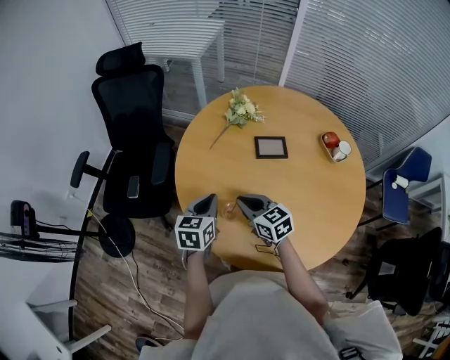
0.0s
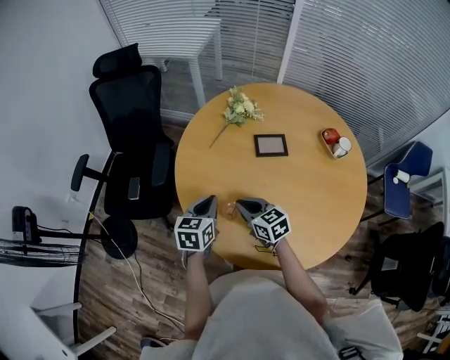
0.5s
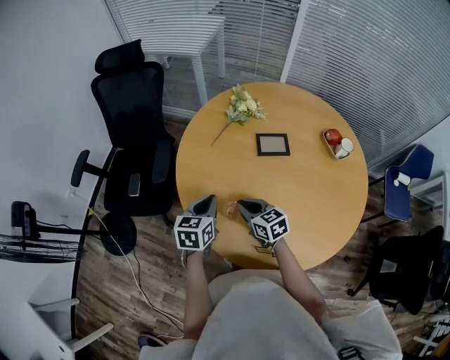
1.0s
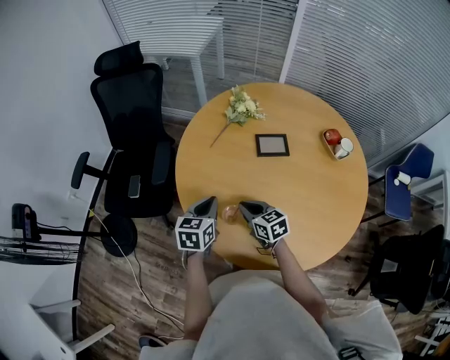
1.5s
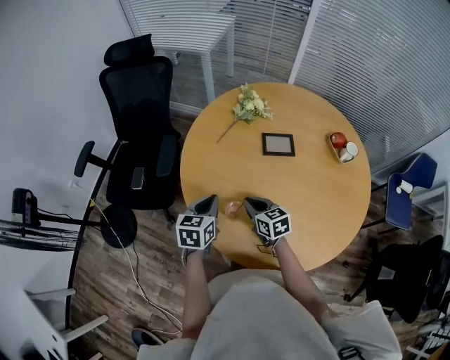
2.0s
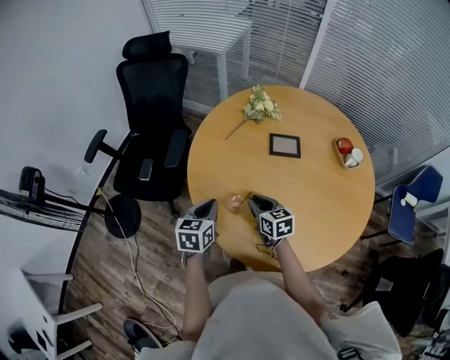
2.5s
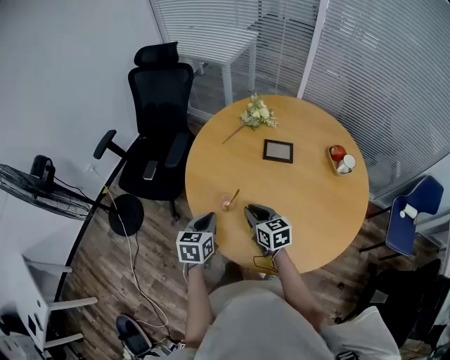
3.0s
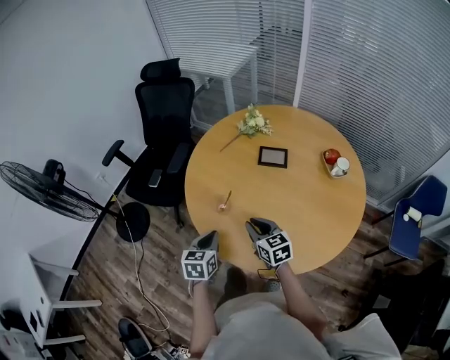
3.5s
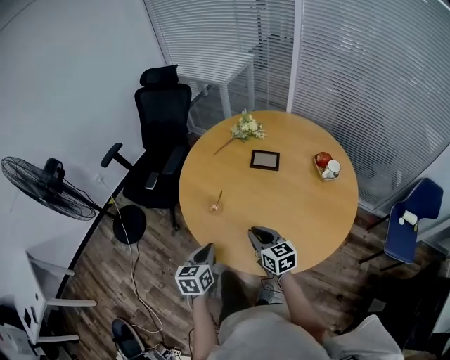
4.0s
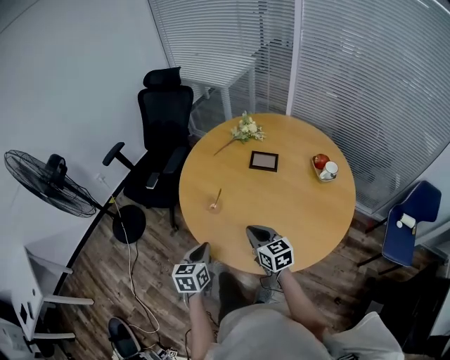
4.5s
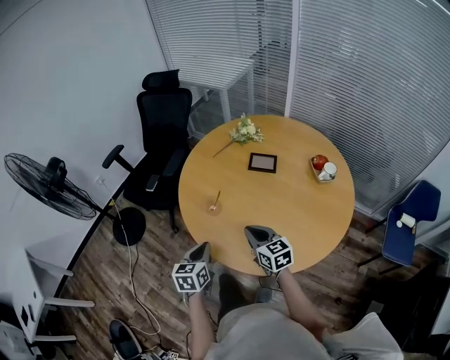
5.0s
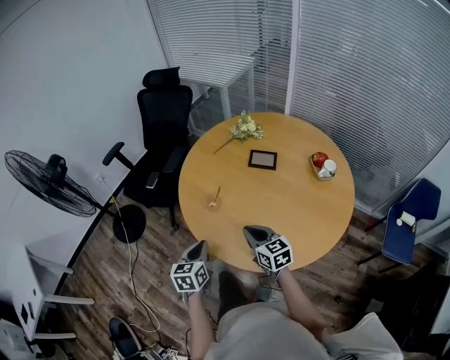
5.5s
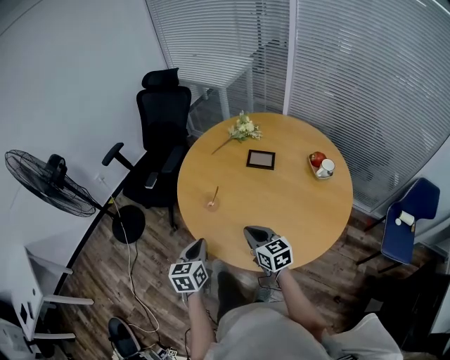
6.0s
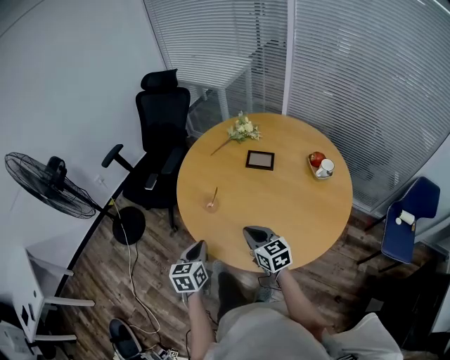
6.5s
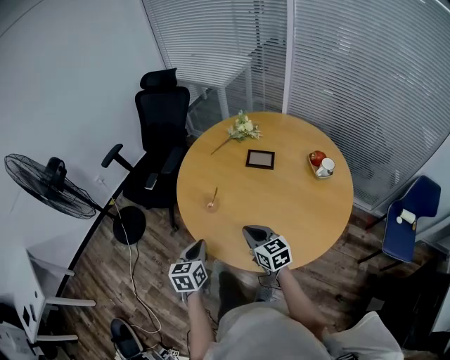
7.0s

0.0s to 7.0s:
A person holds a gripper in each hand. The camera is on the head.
0.0s to 2.0s: The right gripper moves downward, some 5 cm.
2.0s to 3.5s: The left gripper moves backward, roughly 20 cm. Meanwhile the right gripper is displaced backward, upward and to the right by some 20 cm.
3.5s to 5.0s: Both grippers move backward, about 5 cm.
5.0s to 7.0s: The grippers stay close to where they were, moving slightly.

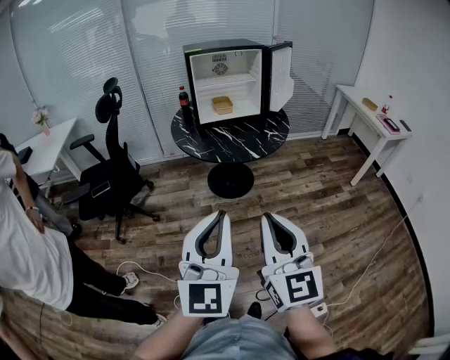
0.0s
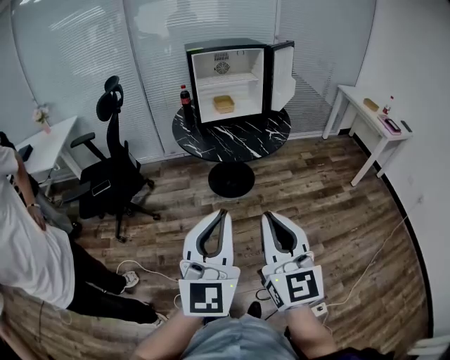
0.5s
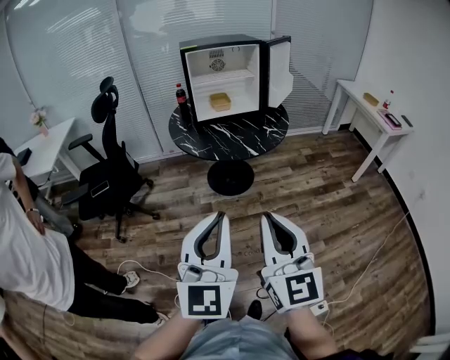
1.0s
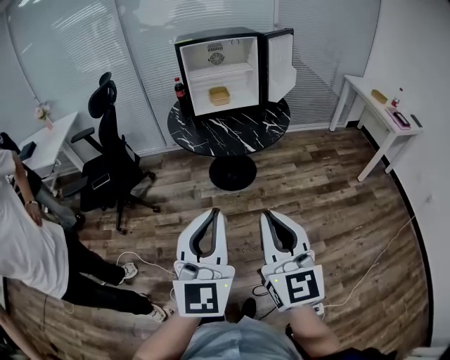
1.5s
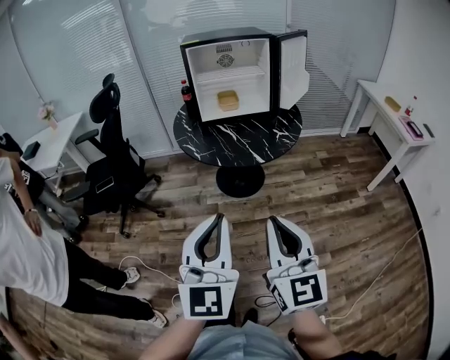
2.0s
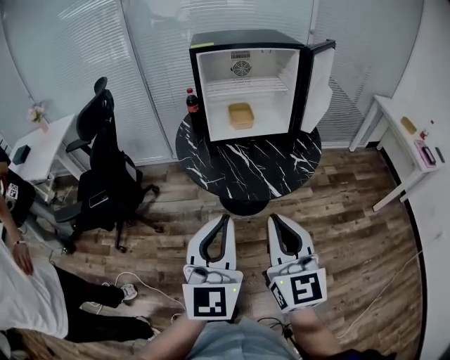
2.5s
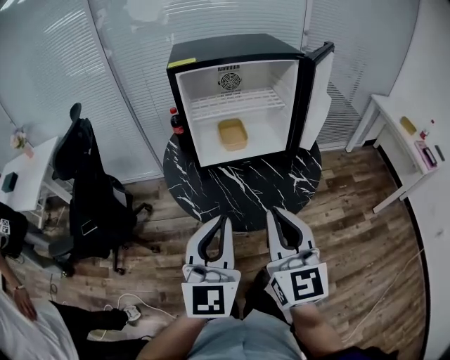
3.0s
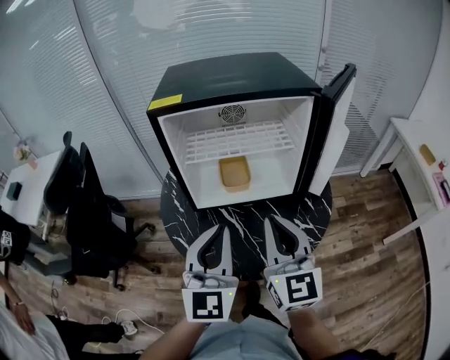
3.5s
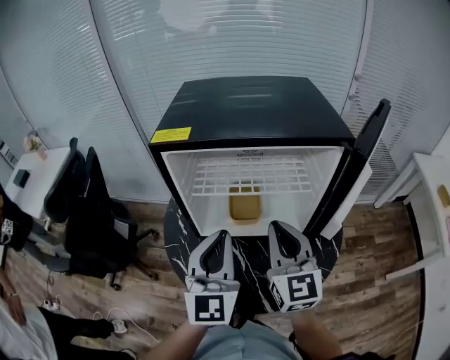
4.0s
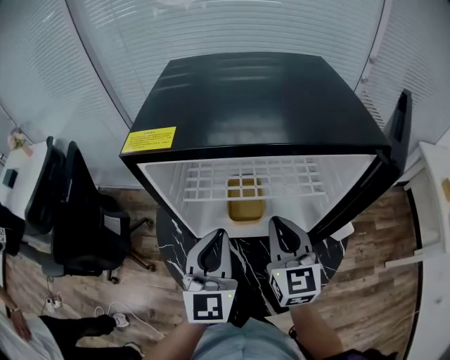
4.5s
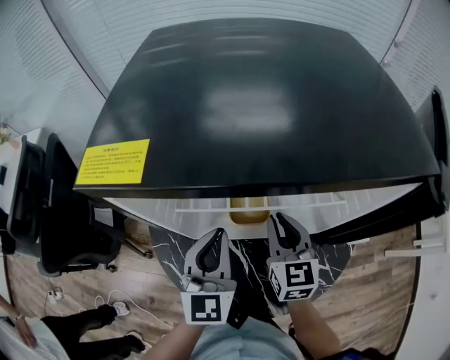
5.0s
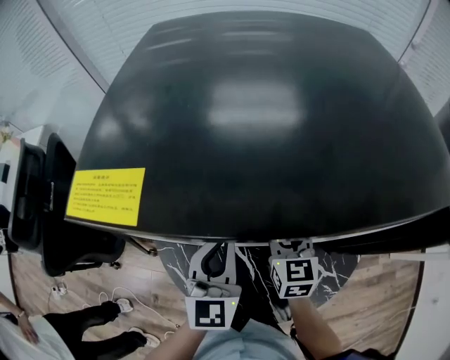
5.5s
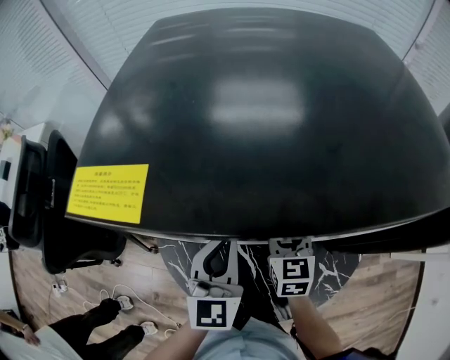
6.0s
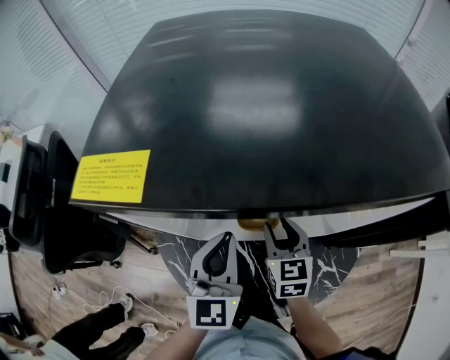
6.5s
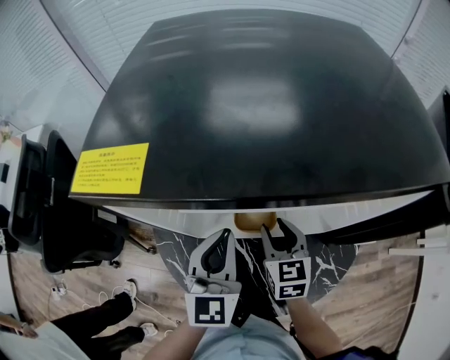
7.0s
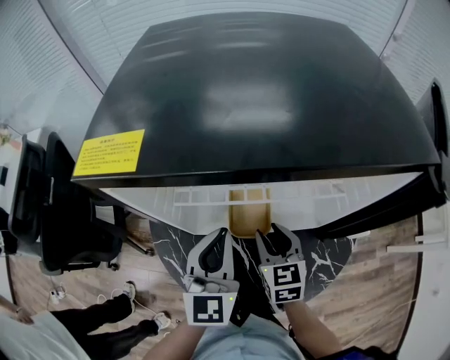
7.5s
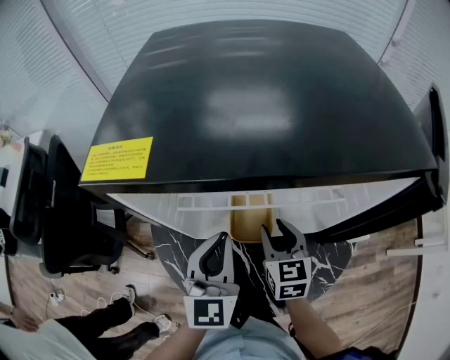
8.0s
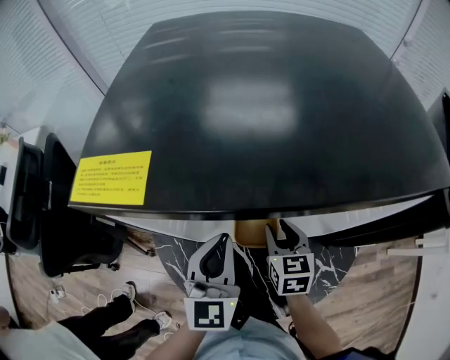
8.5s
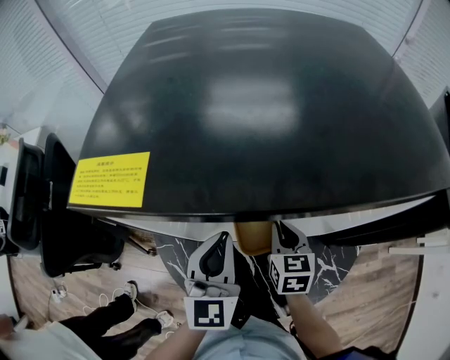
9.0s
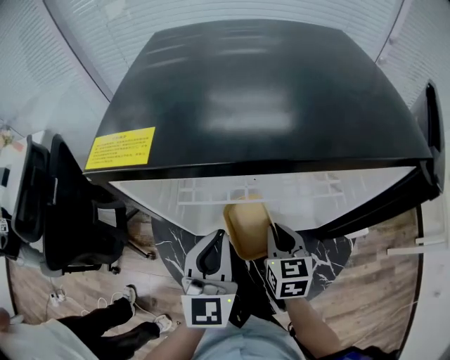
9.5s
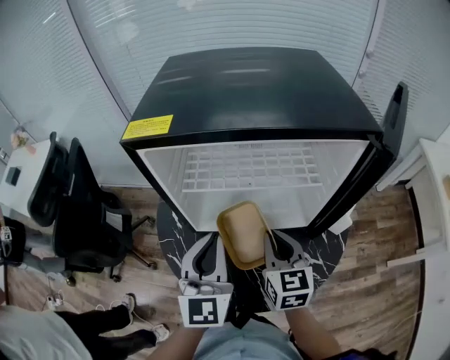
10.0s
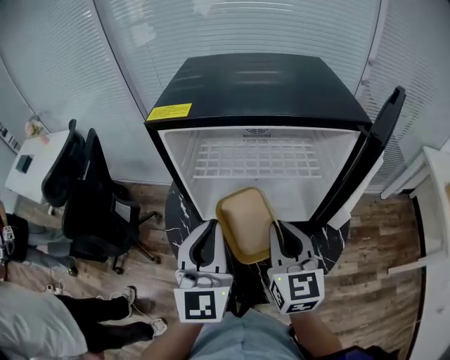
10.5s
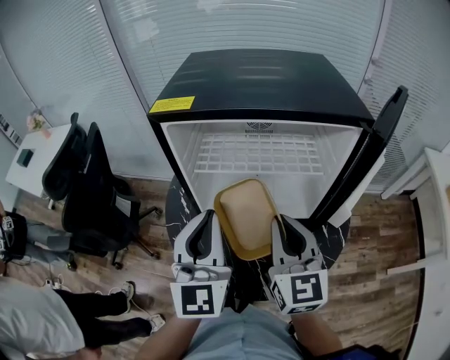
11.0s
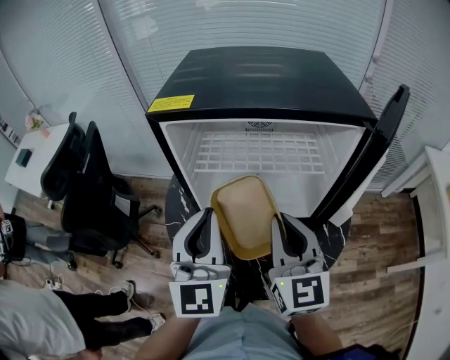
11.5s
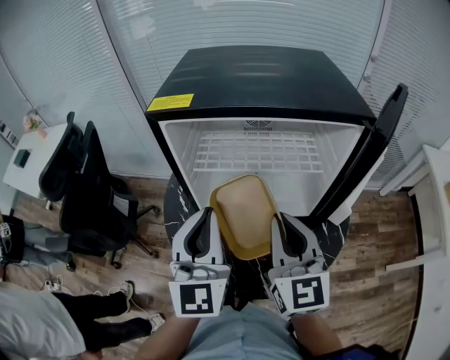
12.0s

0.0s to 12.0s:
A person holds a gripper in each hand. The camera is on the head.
0.0s to 2.0s: The two grippers go roughly 15 cm forward and to the right.
2.0s to 4.0s: The two grippers travel together, forward, roughly 60 cm.
4.0s to 6.0s: The grippers both shift downward and forward by approximately 25 cm. The right gripper changes its angle by approximately 30 degrees, and opens.
8.0s to 10.0s: The grippers both shift backward and upward by about 10 cm. The right gripper closes.
10.0s to 12.0s: The right gripper is displaced upward by approximately 10 cm, and changes its angle by about 20 degrees. Meanwhile the left gripper travels upward by about 5 cm.

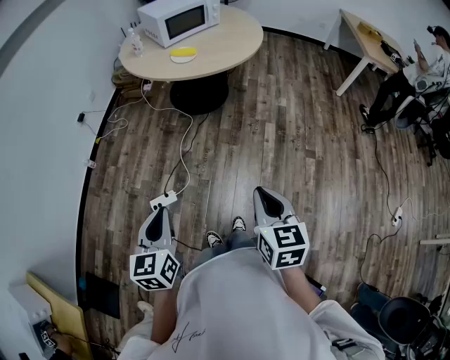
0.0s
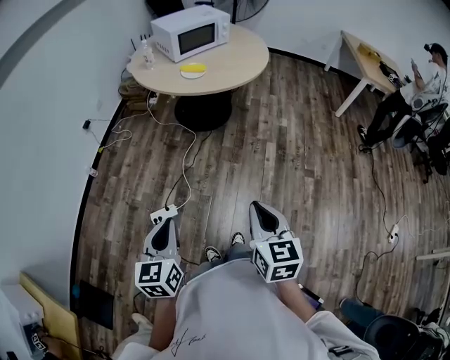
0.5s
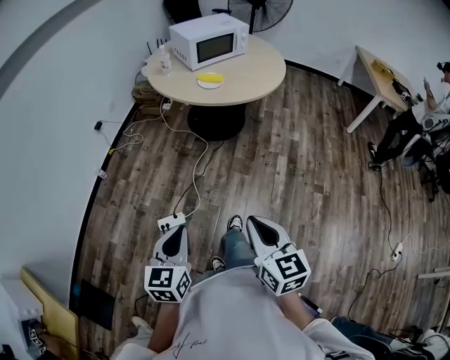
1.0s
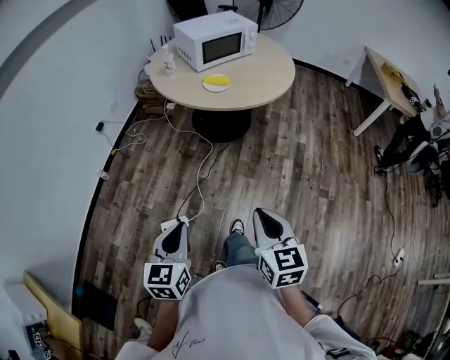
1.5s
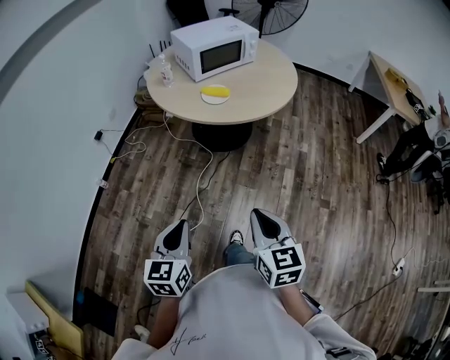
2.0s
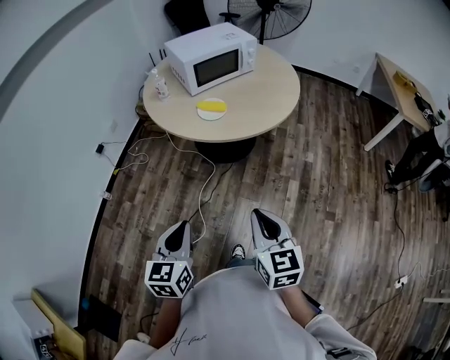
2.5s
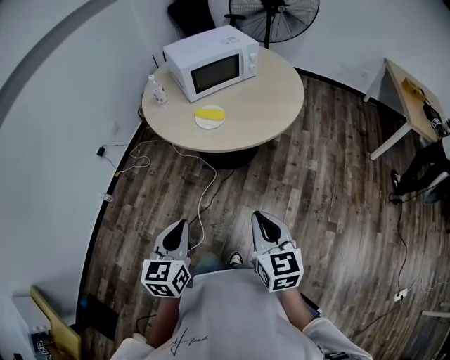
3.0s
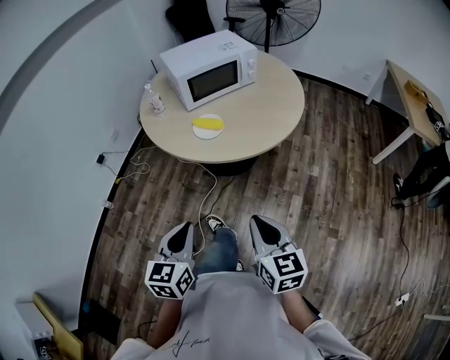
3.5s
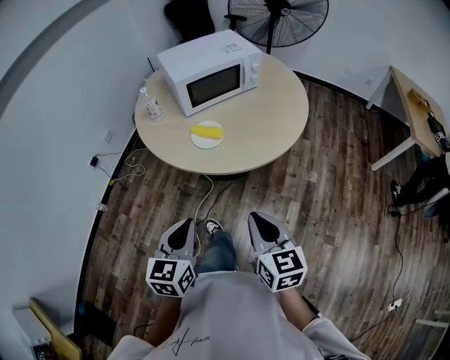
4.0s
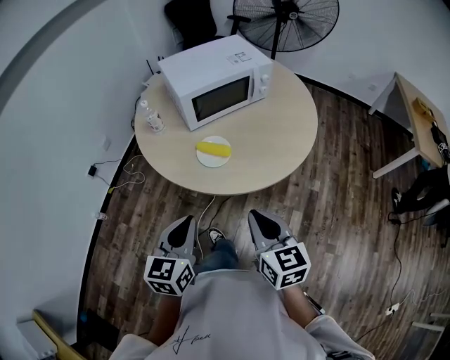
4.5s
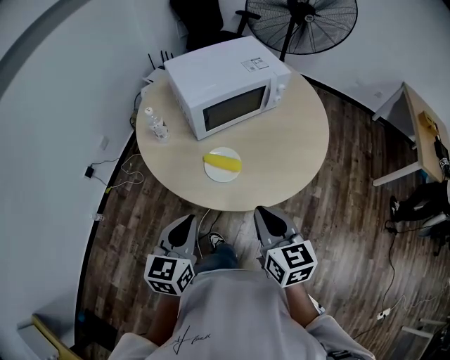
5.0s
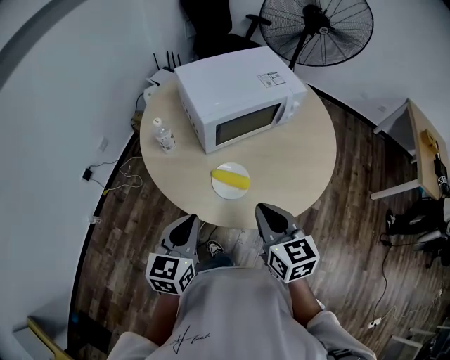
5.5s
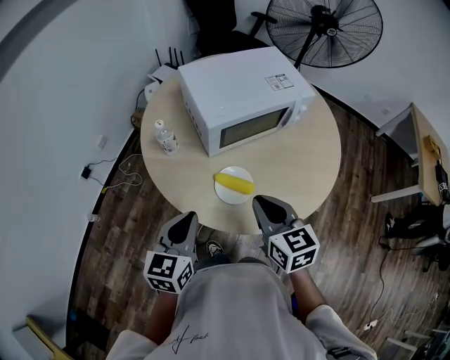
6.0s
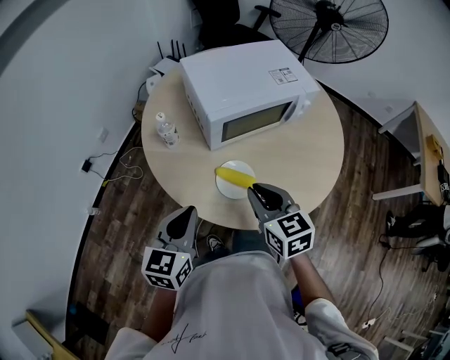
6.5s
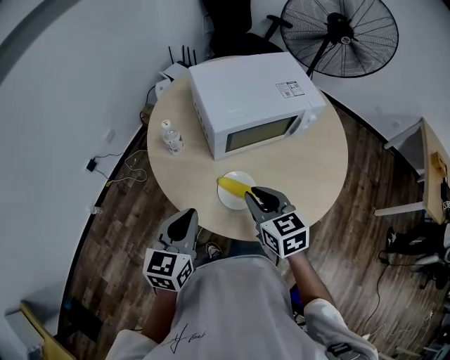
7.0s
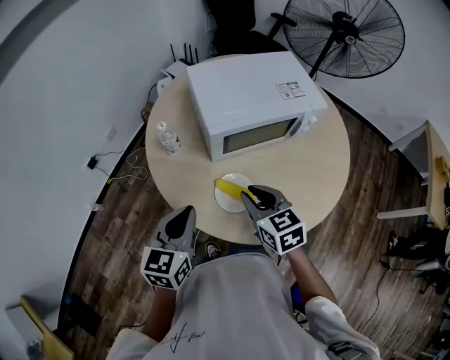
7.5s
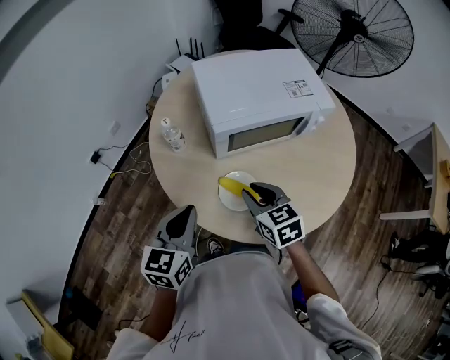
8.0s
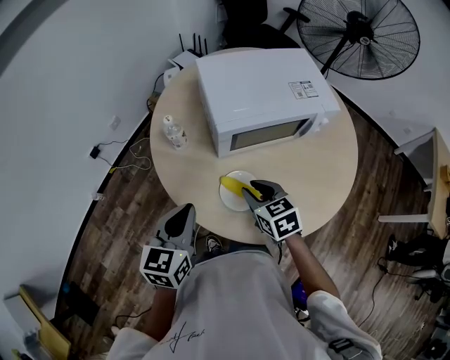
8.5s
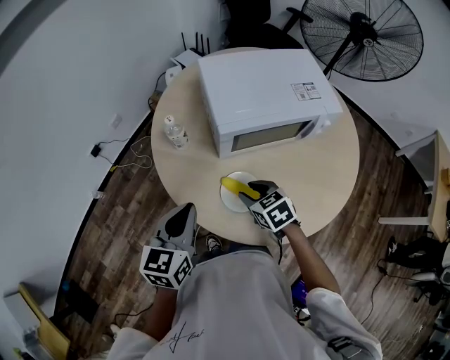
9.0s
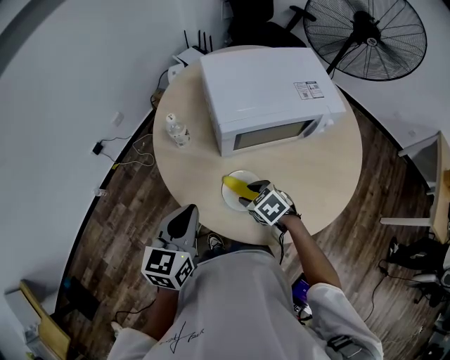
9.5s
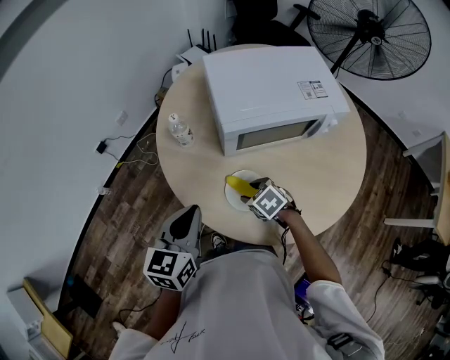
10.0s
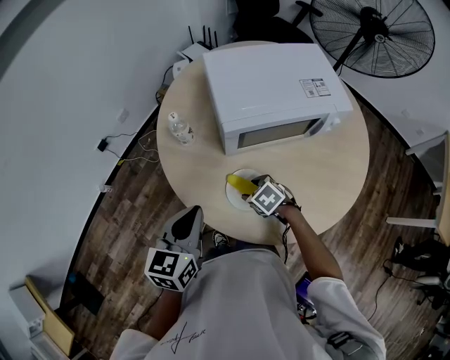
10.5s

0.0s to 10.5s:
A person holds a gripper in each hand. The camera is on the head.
0.0s to 2.0s: The right gripper goes roughly 20 cm forward and to the left. Meanwhile the left gripper is displaced forward by about 20 cm.
2.0s to 4.0s: The left gripper is displaced forward and to the right by about 30 cm, while the right gripper goes roughly 30 cm forward.
4.0s to 6.5s: The two grippers go about 35 cm forward.
6.5s to 8.5s: The right gripper travels downward and forward by some 10 cm.
8.5s to 10.5s: The right gripper goes roughly 15 cm downward, rotates some 30 degrees, and opens.
